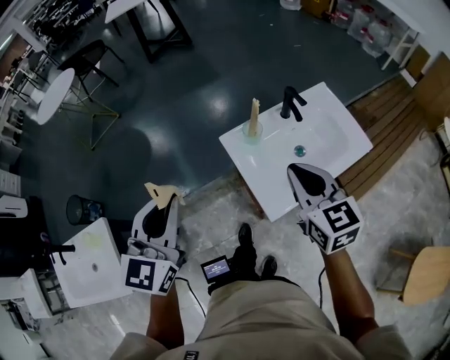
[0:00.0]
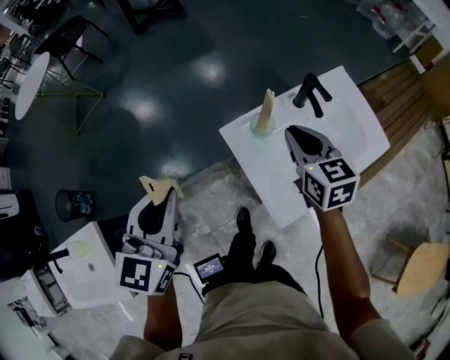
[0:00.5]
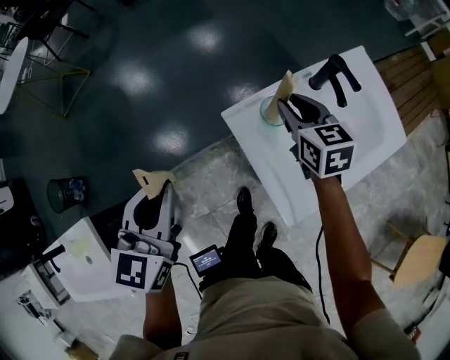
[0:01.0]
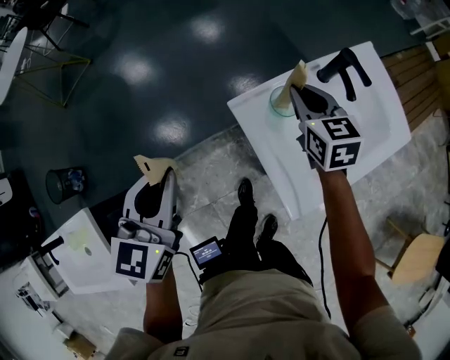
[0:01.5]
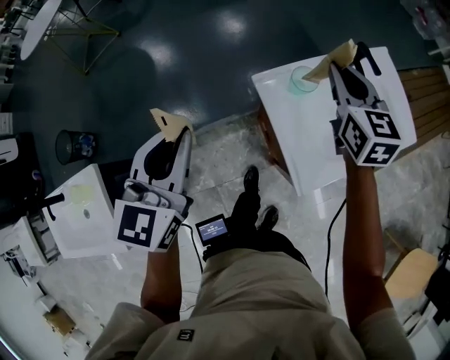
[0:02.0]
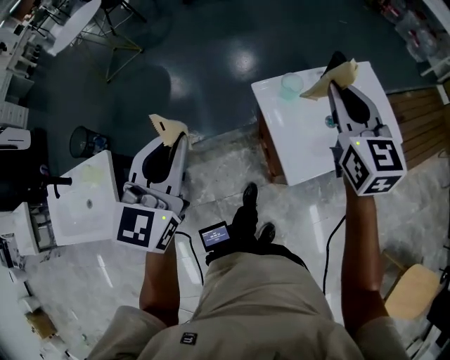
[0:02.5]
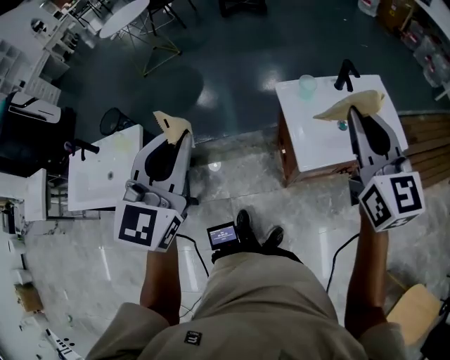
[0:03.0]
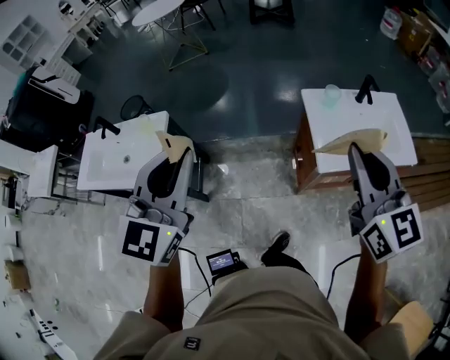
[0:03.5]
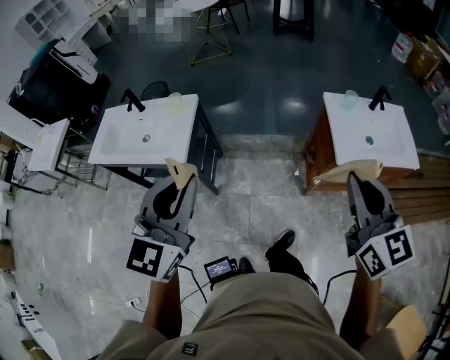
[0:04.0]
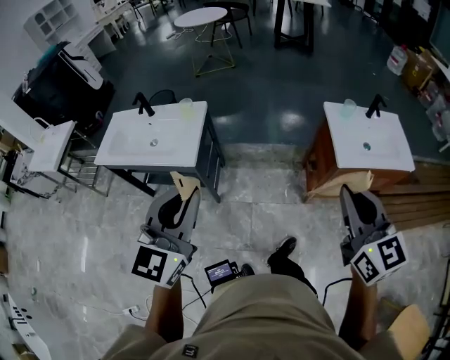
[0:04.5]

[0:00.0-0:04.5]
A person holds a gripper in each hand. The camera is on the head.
0:00.0 to 0:02.0: The right gripper moves forward and downward, roughly 25 cm. The left gripper heads downward, forward and to the left, covering some 15 cm.
0:02.0 to 0:04.5: The two grippers travel together, approximately 70 cm. The right gripper changes its angle by roughly 30 degrees; the left gripper turns by some 30 degrees.

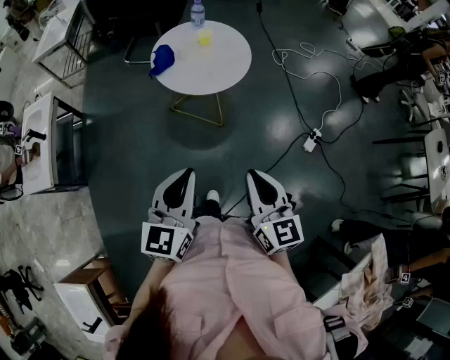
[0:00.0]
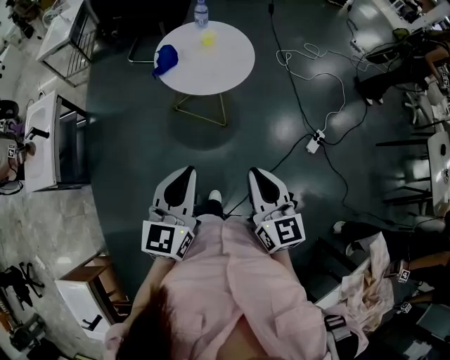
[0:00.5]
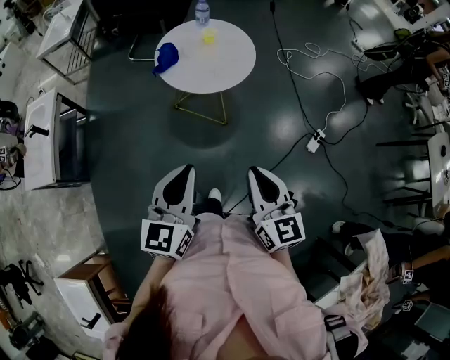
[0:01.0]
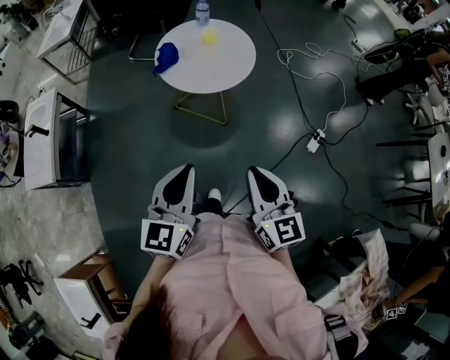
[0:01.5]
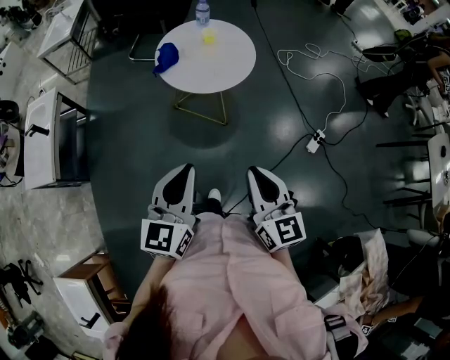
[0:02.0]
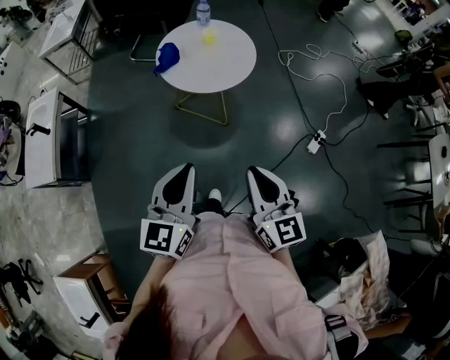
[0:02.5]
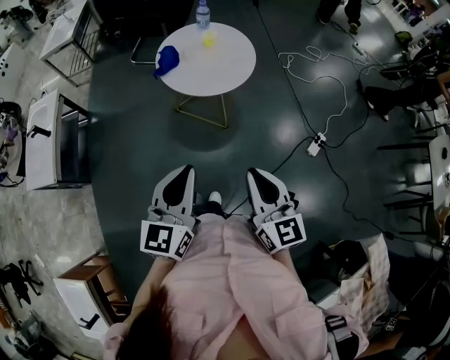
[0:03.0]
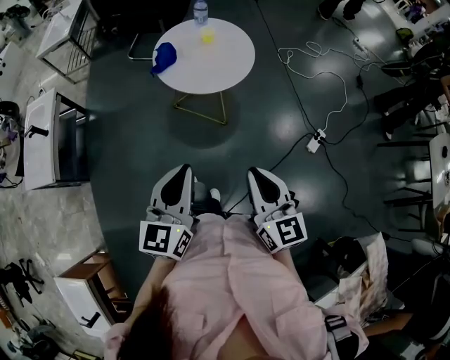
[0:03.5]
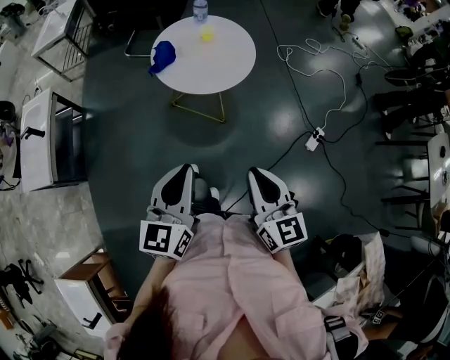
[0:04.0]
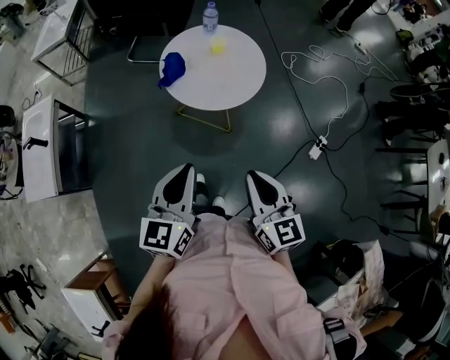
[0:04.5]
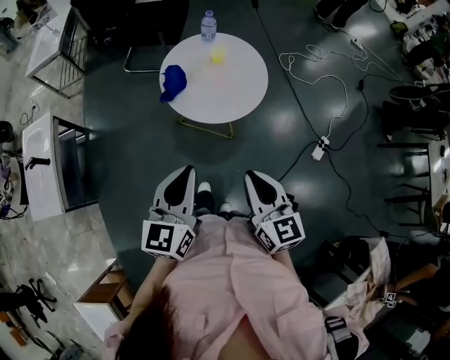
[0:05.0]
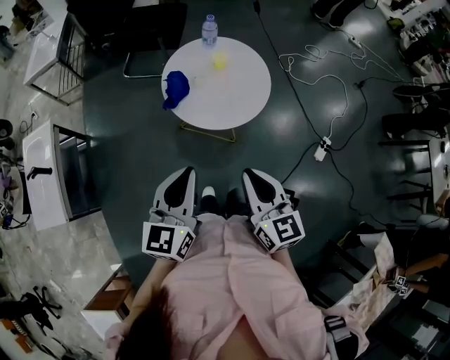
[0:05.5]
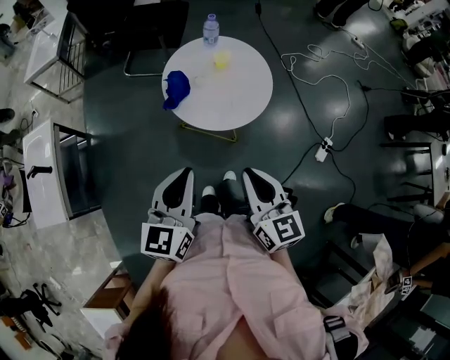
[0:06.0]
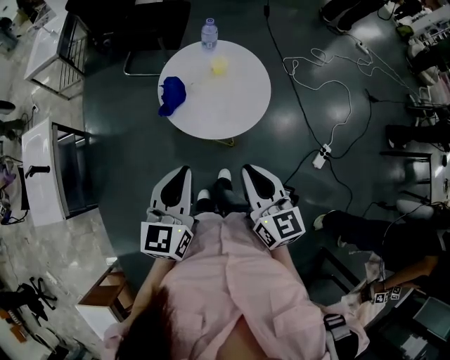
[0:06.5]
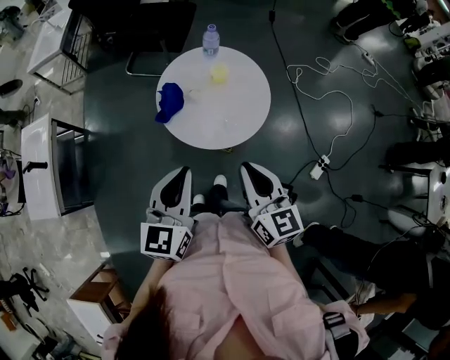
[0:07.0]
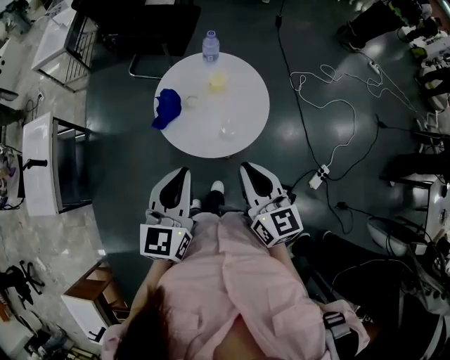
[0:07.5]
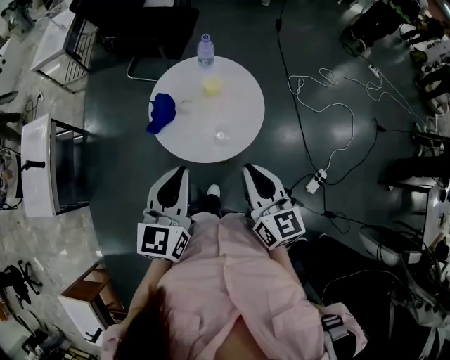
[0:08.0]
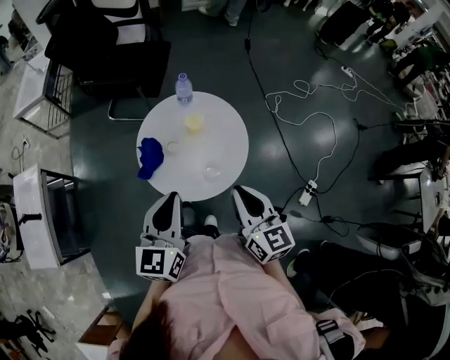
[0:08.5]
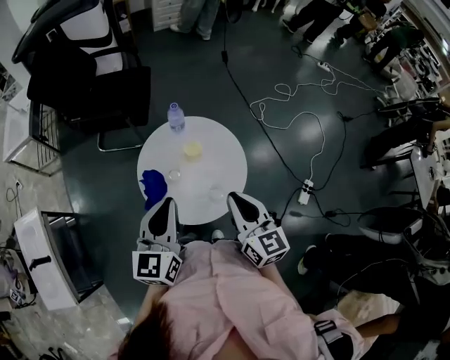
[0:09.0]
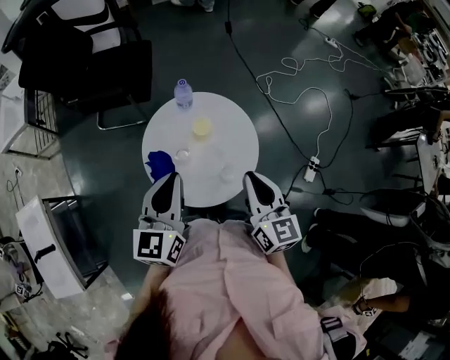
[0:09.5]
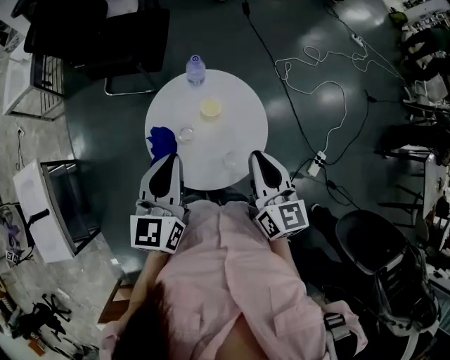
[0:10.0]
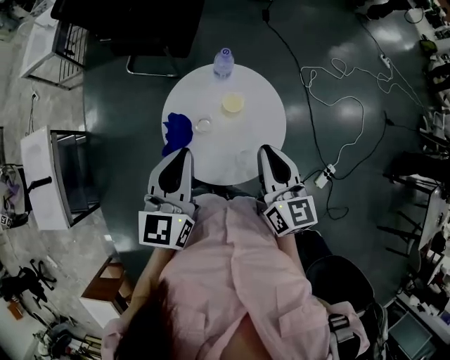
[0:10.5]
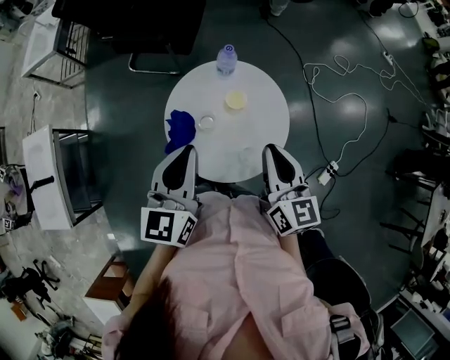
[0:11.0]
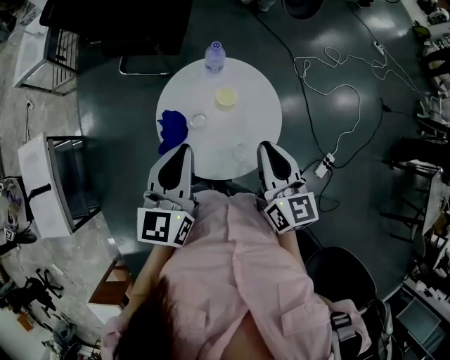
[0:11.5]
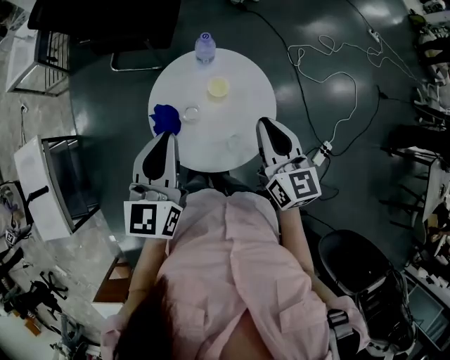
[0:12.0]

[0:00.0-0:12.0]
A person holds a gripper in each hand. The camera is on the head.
0:00.0 to 0:02.0: Neither gripper changes place.
0:02.0 to 0:04.0: The grippers stay close to where they were, moving slightly.
0:04.0 to 0:06.0: The two grippers go some 20 cm forward and to the left.
0:06.0 to 0:08.0: The two grippers go approximately 15 cm forward and to the right.
0:08.0 to 0:10.0: The two grippers go about 15 cm forward.
0:10.0 to 0:12.0: The grippers make only small movements.

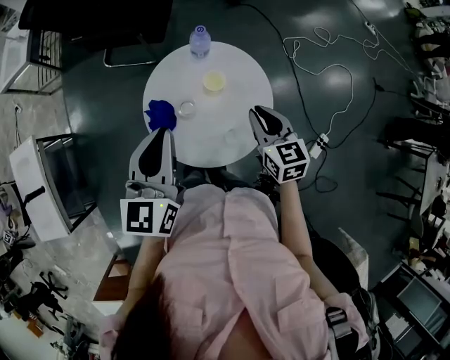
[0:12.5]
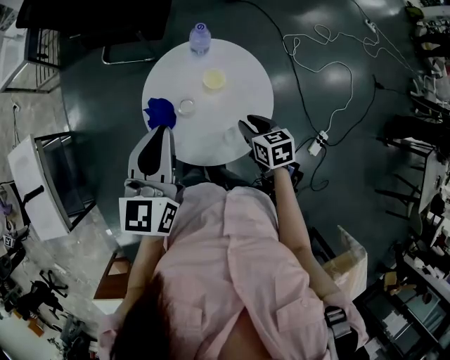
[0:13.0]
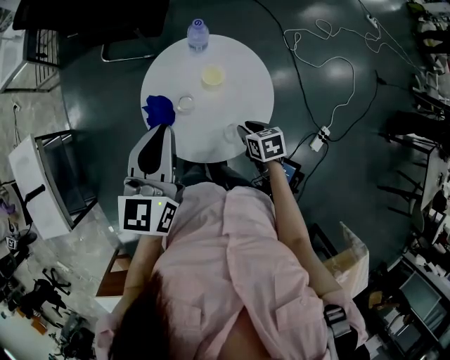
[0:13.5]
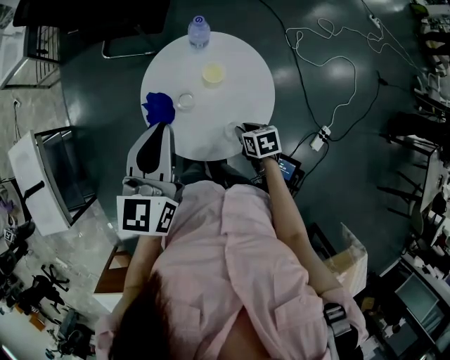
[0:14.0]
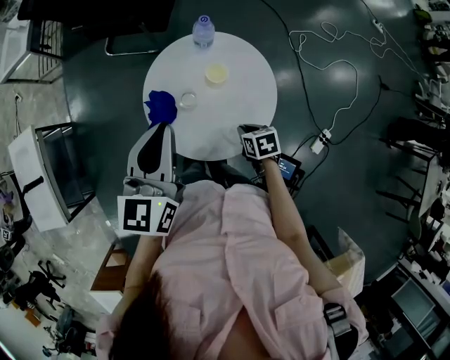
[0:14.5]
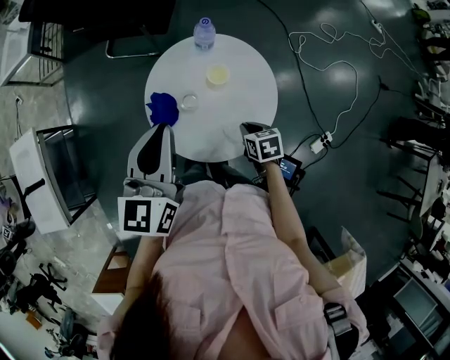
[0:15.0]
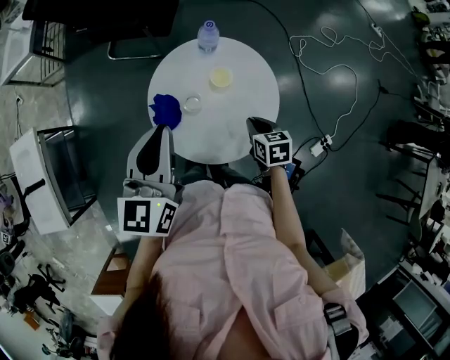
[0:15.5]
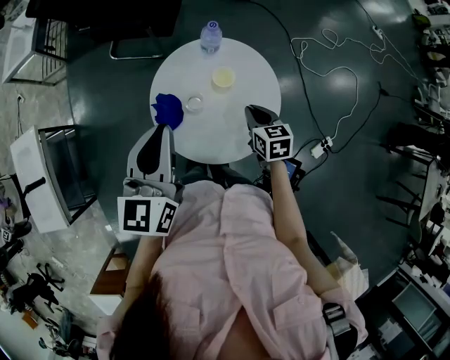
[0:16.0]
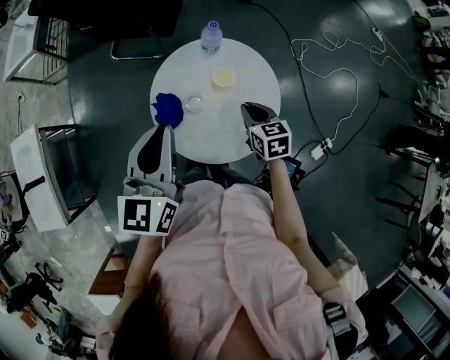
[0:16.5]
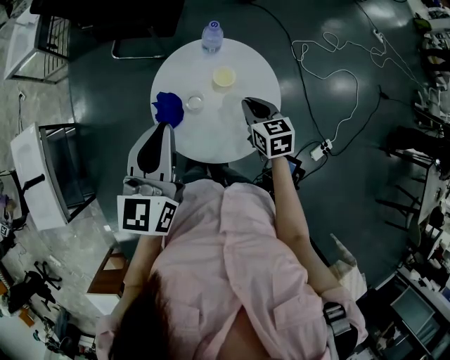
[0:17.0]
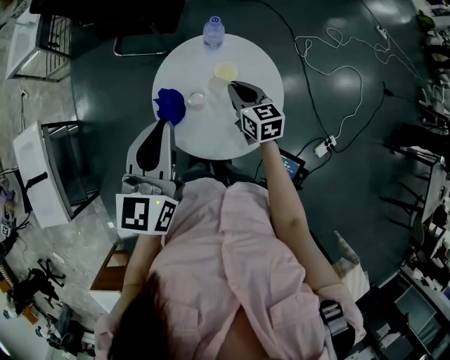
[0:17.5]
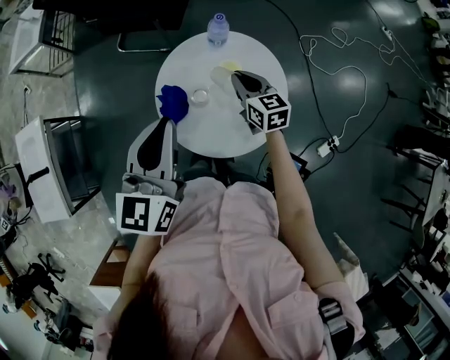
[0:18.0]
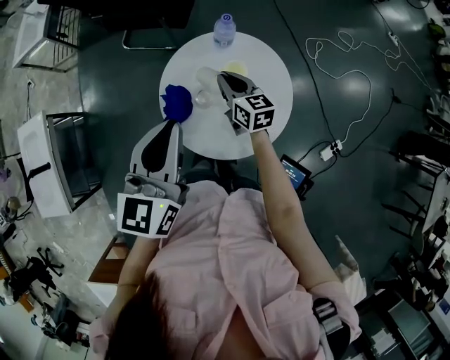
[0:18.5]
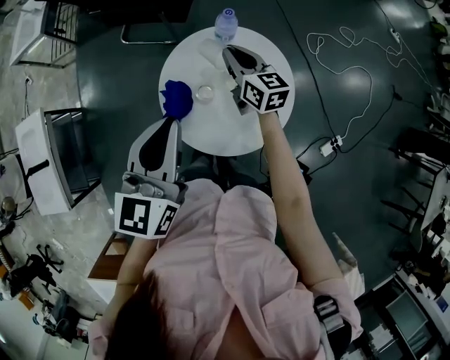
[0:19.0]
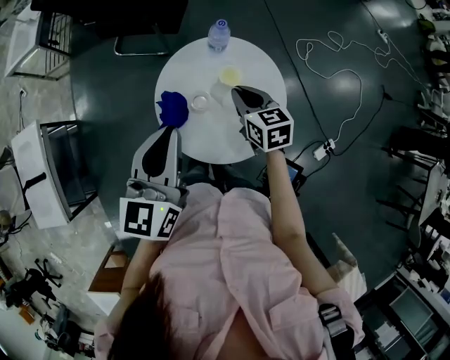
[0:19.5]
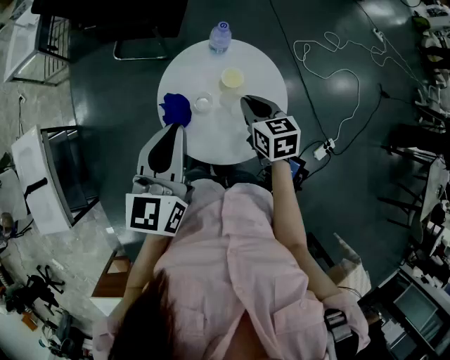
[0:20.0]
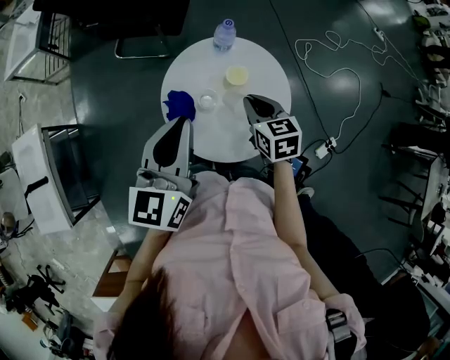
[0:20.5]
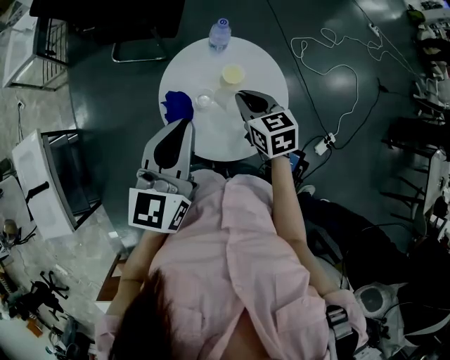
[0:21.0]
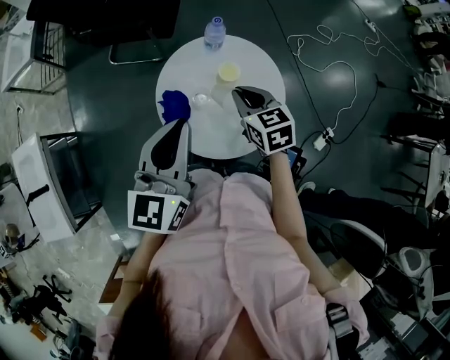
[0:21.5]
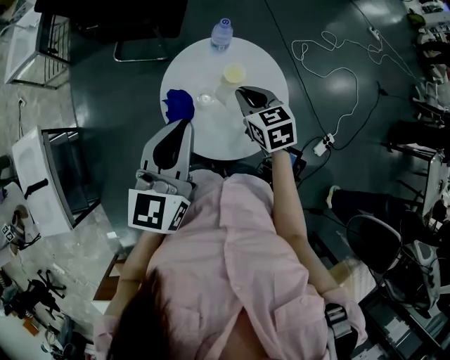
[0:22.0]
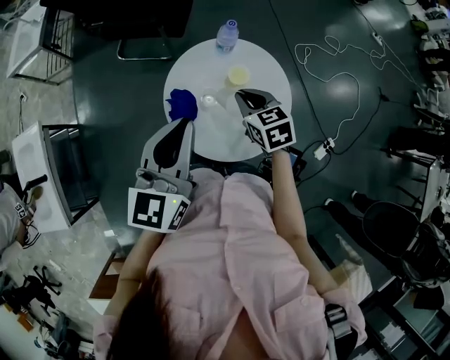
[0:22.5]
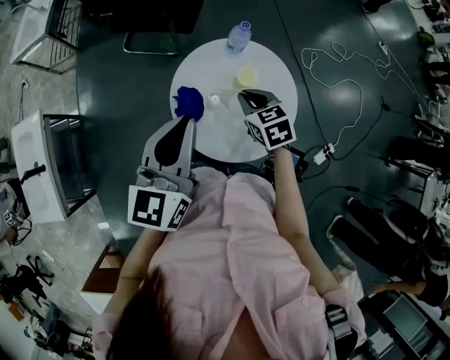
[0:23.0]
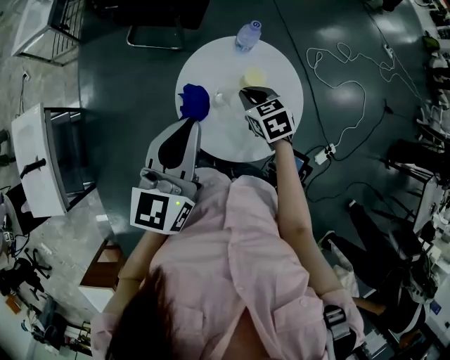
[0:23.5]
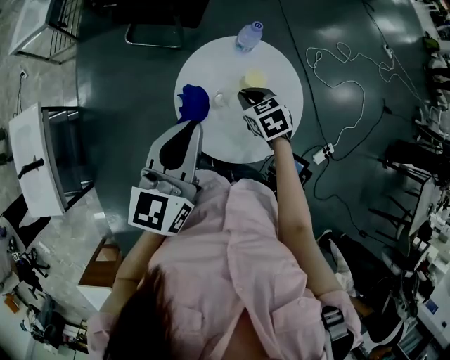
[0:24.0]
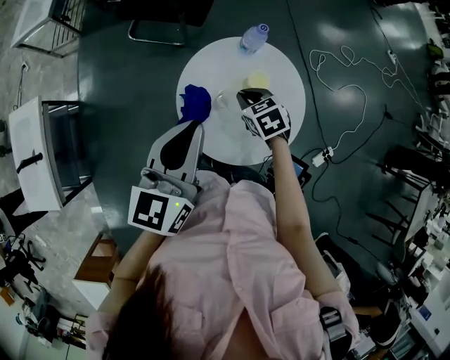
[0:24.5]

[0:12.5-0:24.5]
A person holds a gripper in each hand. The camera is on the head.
0:12.5 to 0:14.5: The right gripper heads downward, covering some 20 cm, and tilts its fingers some 30 degrees downward.
0:14.5 to 0:16.5: The right gripper goes approximately 15 cm upward and forward, and swivels approximately 30 degrees.
0:16.5 to 0:18.5: The right gripper is displaced to the left and forward by approximately 15 cm, and changes its angle by about 20 degrees.
0:18.5 to 0:20.5: The right gripper travels backward by roughly 5 cm, and turns by some 20 degrees.
0:20.5 to 0:22.5: The grippers move only a little.
0:22.5 to 0:24.5: The right gripper goes roughly 10 cm downward.
